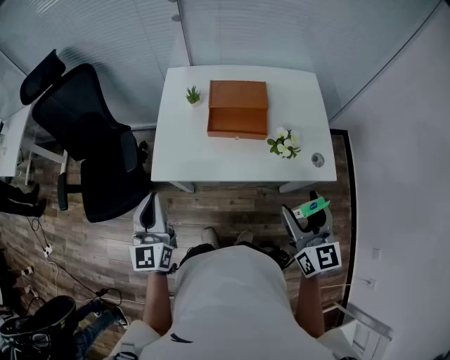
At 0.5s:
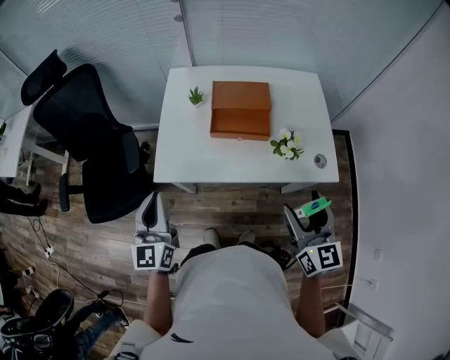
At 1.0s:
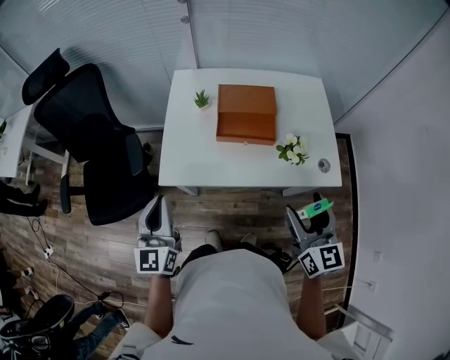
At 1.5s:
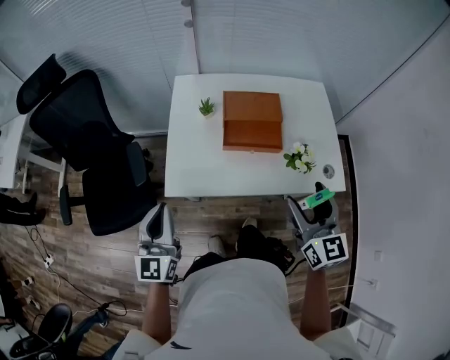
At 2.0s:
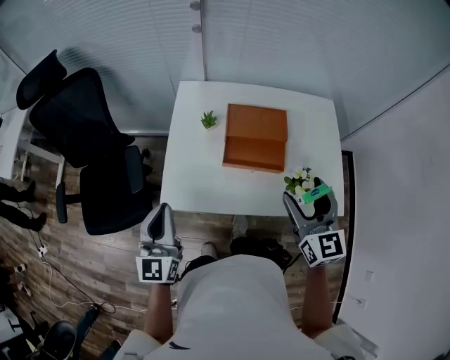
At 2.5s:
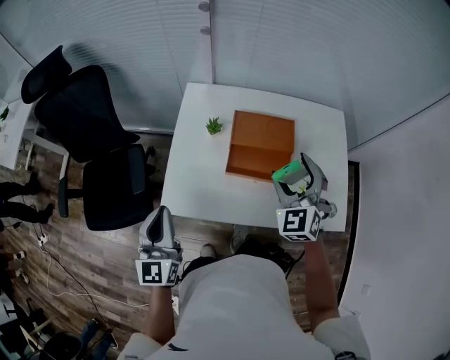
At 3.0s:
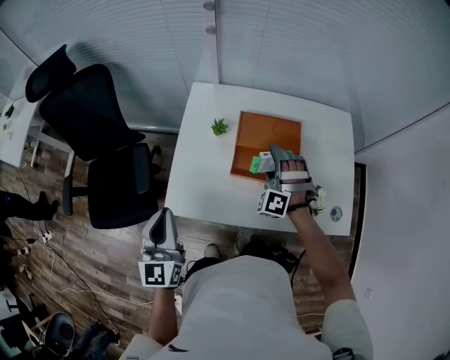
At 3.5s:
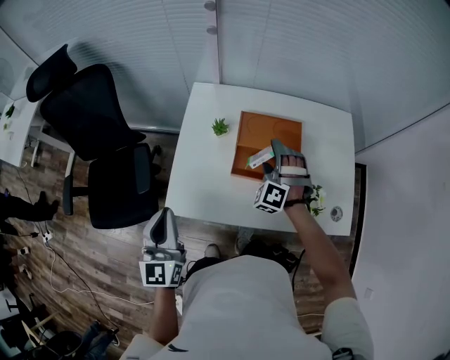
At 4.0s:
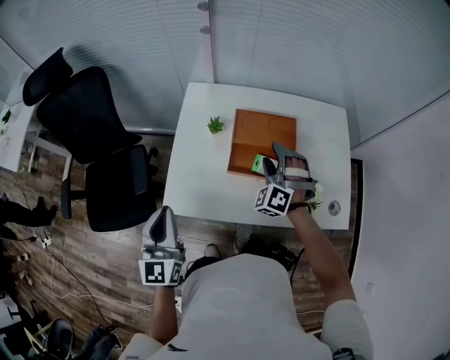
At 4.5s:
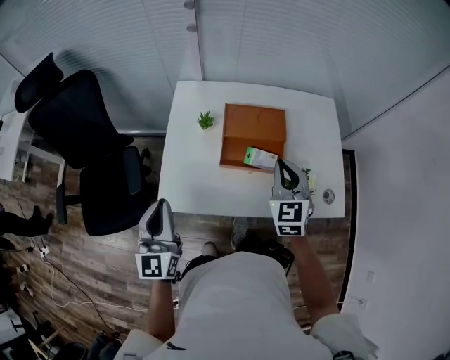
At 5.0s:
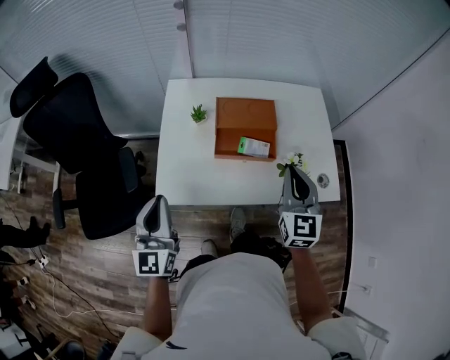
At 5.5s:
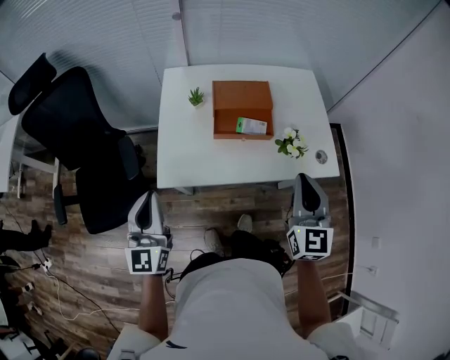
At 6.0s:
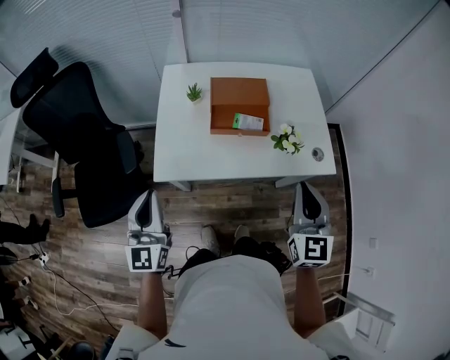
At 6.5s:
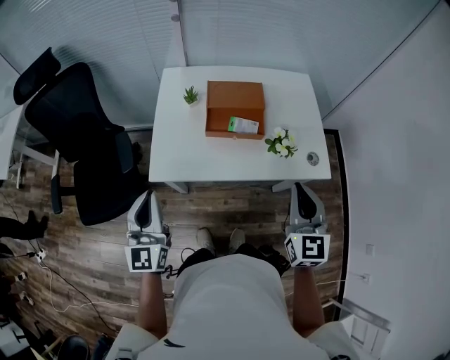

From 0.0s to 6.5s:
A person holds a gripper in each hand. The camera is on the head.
From 0.0s to 2.0s: The left gripper heads forward, covering approximately 10 cm. The right gripper shifts approximately 15 cm forward.
From 2.0s to 4.5s: The right gripper shifts about 10 cm forward and downward, rotates about 20 degrees, and closes its fingers.
From 4.5s to 6.5s: The left gripper heads backward, covering roughly 10 cm, while the right gripper is displaced backward by about 20 cm.

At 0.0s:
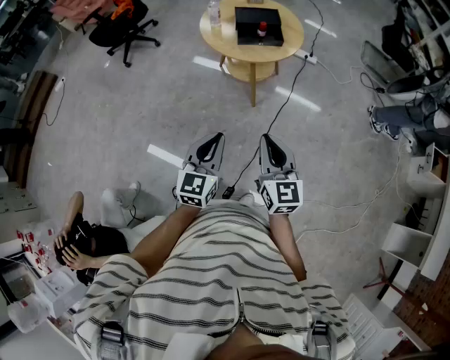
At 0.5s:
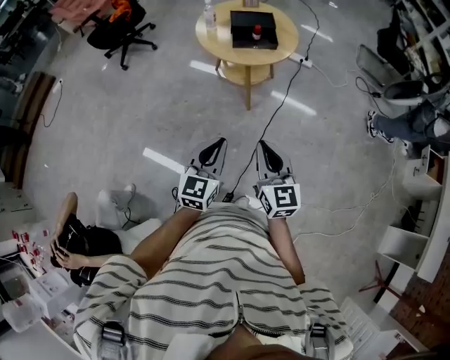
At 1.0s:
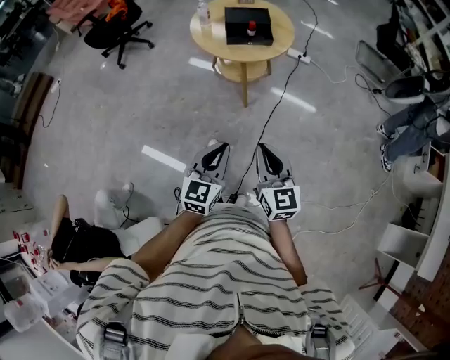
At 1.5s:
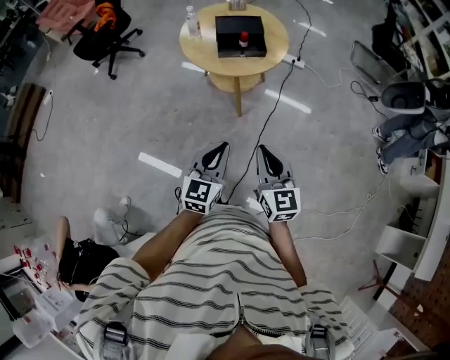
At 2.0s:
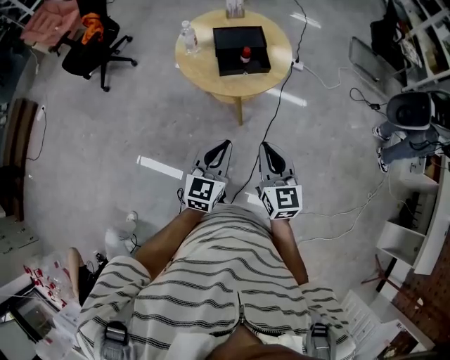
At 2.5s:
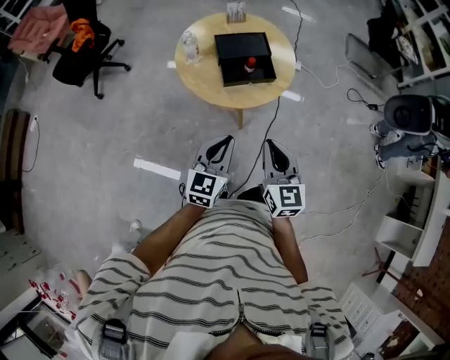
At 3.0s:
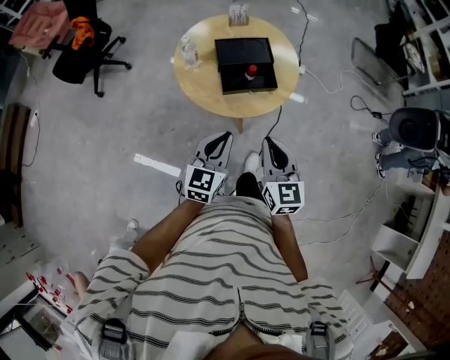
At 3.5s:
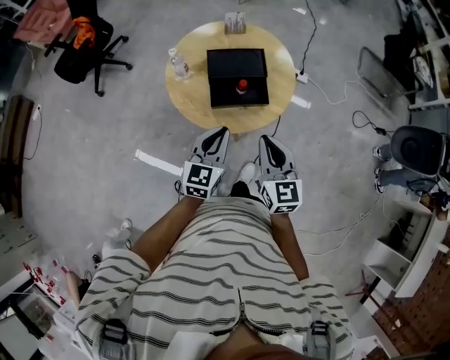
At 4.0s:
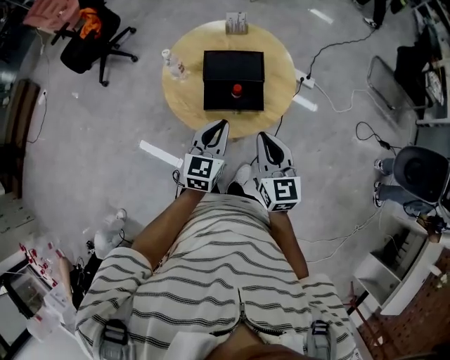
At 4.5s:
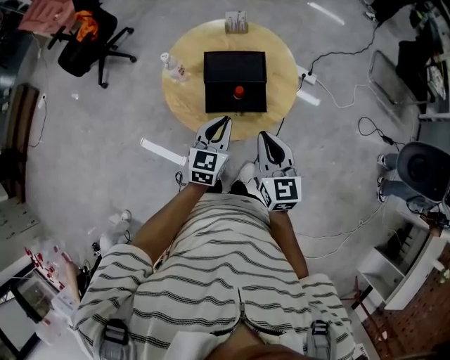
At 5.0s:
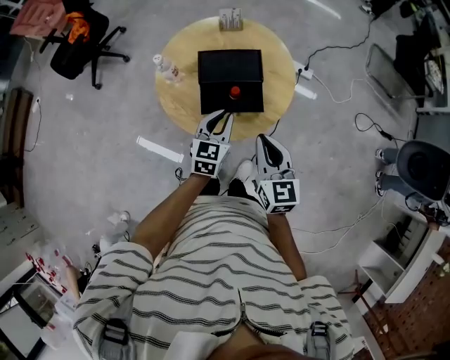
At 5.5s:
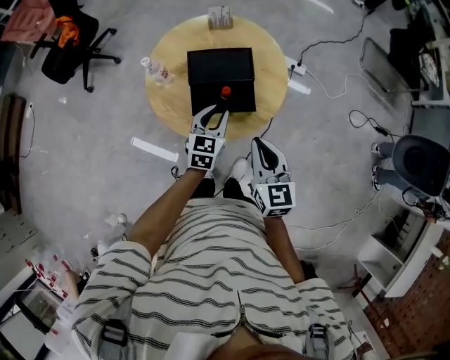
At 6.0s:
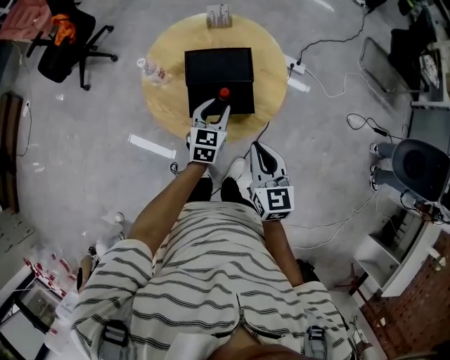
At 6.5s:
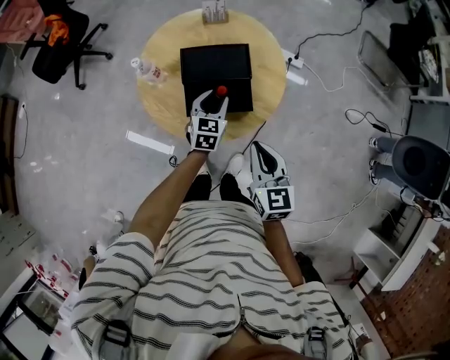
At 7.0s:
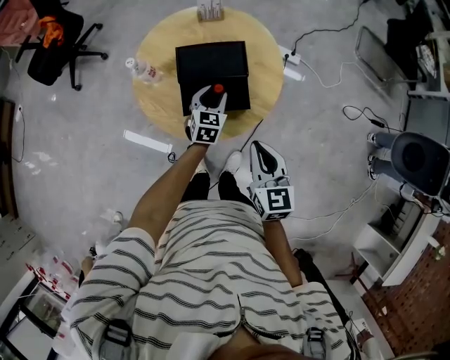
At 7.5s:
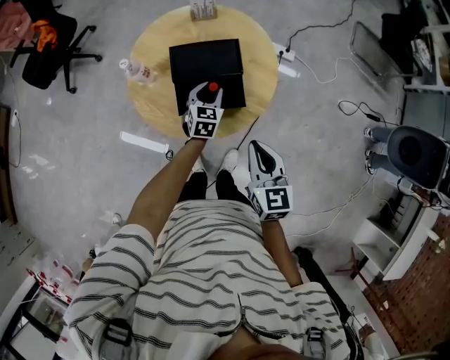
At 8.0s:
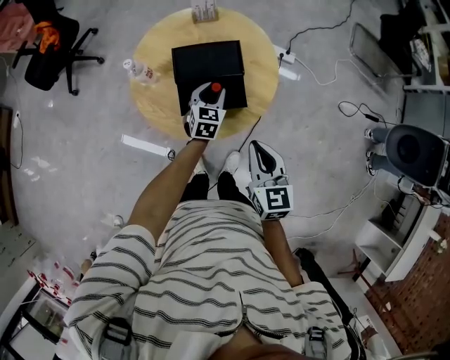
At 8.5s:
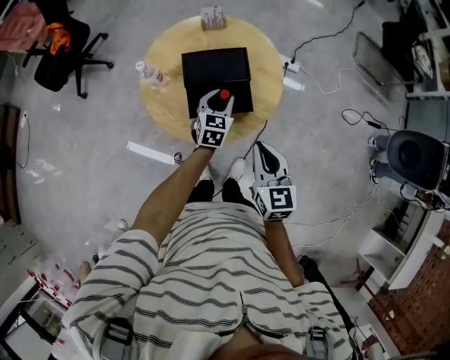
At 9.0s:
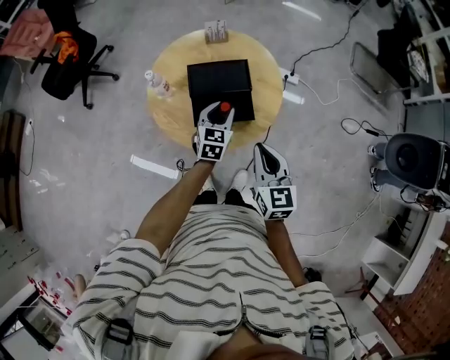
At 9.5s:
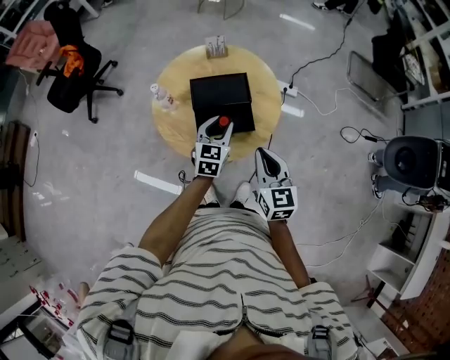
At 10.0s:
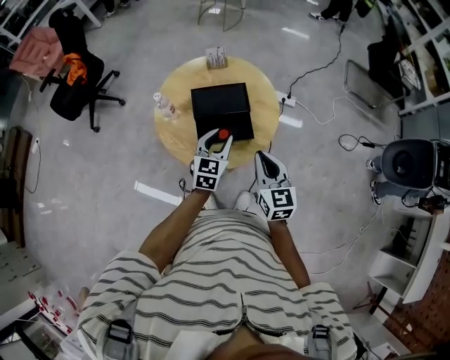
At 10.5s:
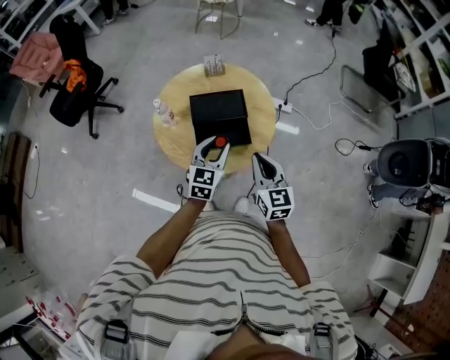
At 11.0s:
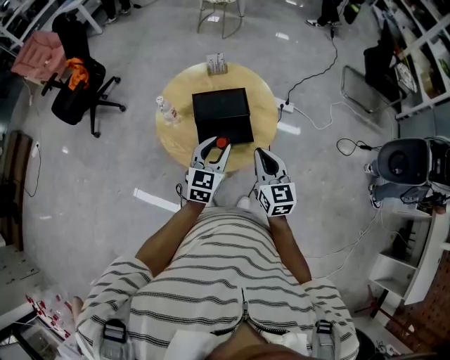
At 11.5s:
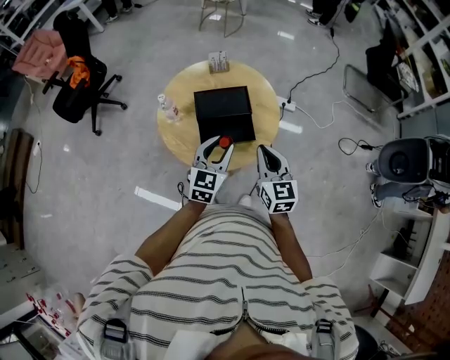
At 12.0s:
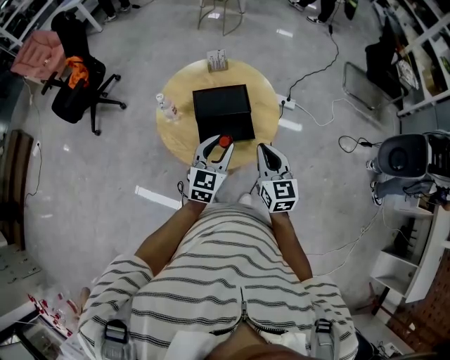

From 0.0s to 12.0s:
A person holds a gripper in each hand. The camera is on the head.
From 0.0s to 2.0s: Both grippers move forward, some 20 cm.
From 2.0s to 4.0s: The two grippers go about 30 cm forward.
From 4.0s to 6.0s: The right gripper shifts by approximately 5 cm. The left gripper moves forward and downward, some 15 cm, and opens its fingers.
From 6.0s to 8.0s: The left gripper heads downward, covering approximately 5 cm.
From 8.0s to 10.0s: The left gripper travels upward and backward by about 15 cm.
From 10.0s to 12.0s: The left gripper heads upward, covering roughly 5 cm.

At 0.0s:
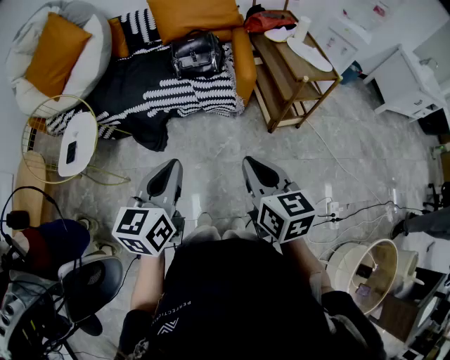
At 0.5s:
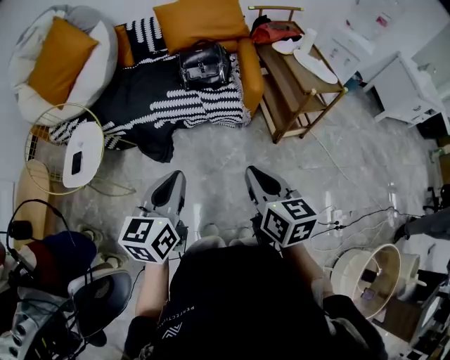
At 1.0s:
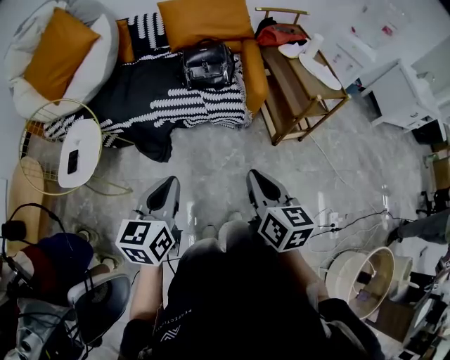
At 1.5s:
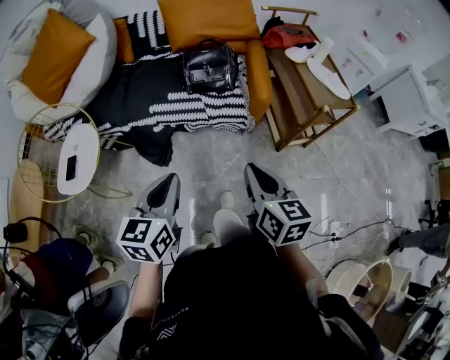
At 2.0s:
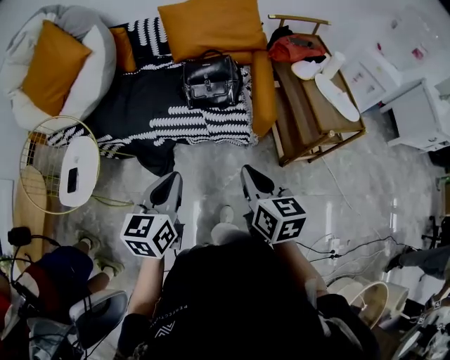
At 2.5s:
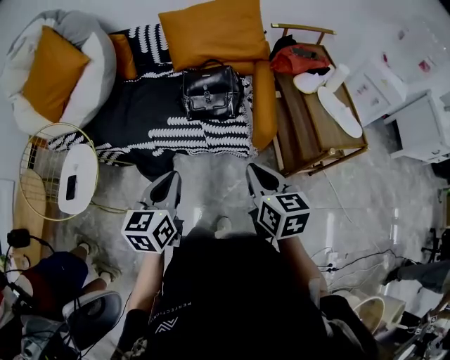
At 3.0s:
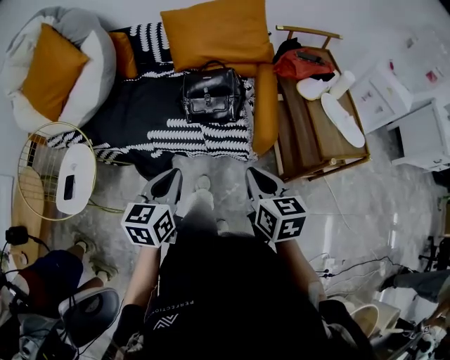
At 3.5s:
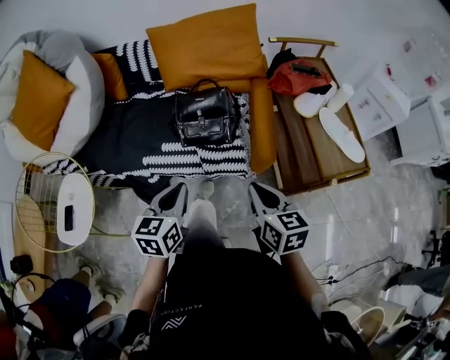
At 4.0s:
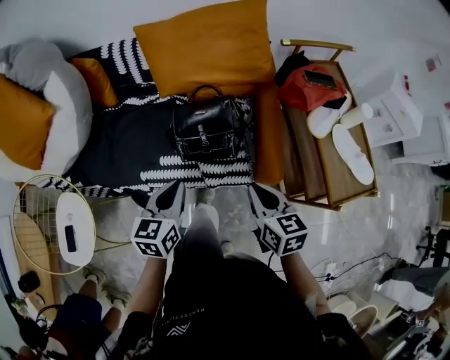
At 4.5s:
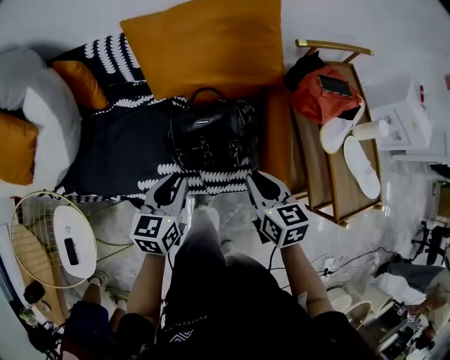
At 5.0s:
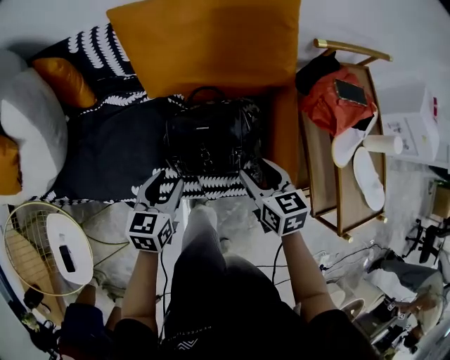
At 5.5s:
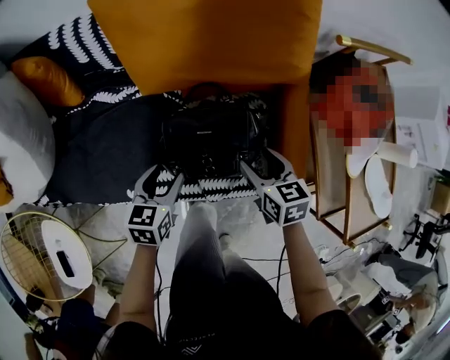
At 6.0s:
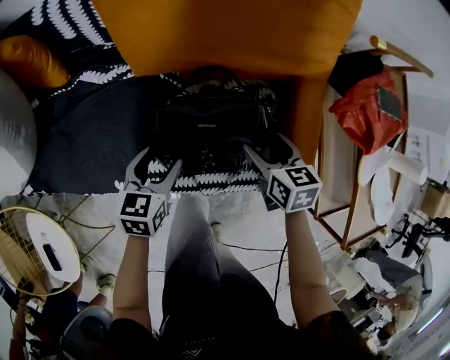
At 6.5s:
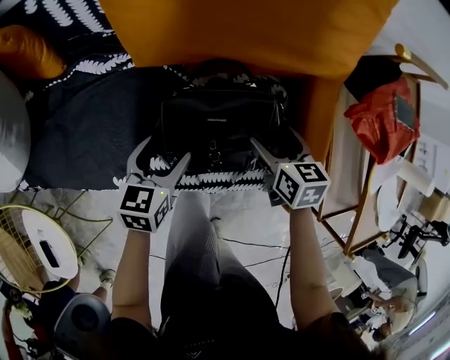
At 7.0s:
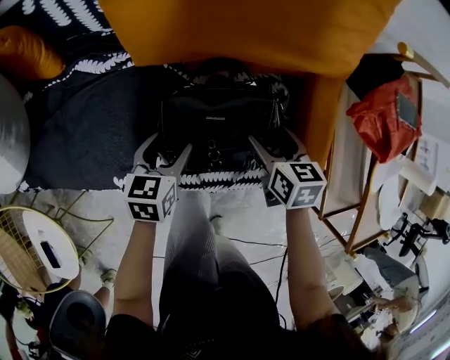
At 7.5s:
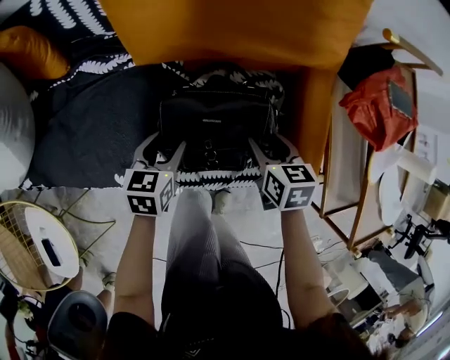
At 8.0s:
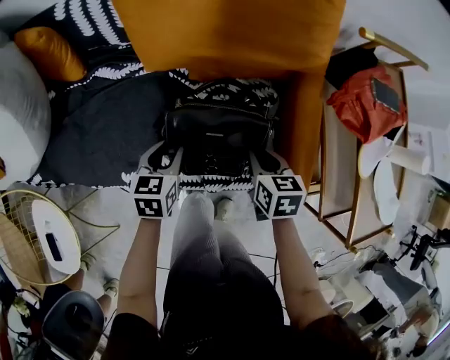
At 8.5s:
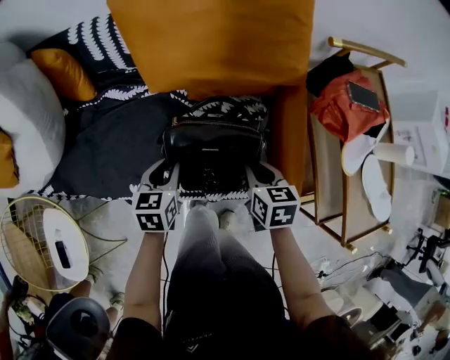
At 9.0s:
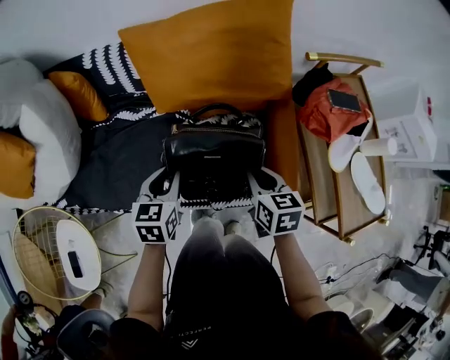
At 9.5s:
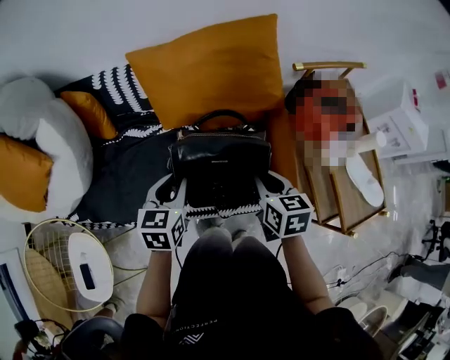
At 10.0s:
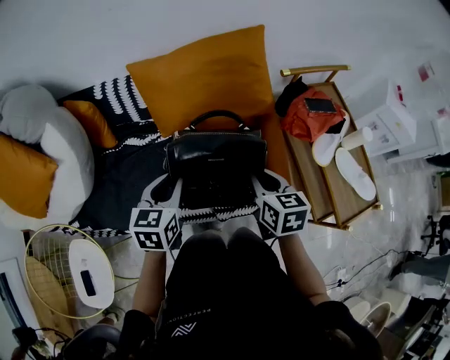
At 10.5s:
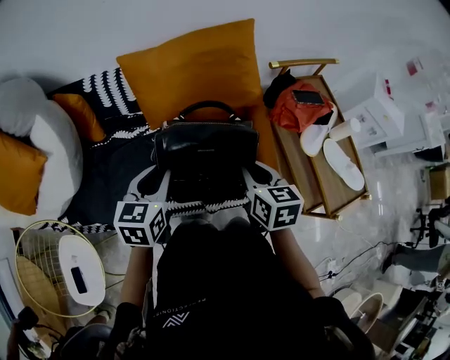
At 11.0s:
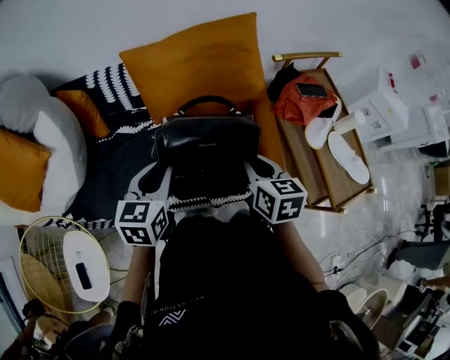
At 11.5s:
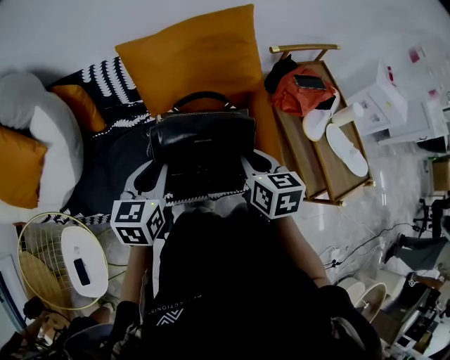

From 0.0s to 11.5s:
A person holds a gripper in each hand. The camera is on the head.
From 0.0s to 2.0s: The grippers both shift forward by roughly 20 cm.
From 2.0s to 4.0s: Both grippers move forward, roughly 30 cm.
From 4.0s to 6.0s: The left gripper moves downward and forward, approximately 30 cm, and opens, while the right gripper shifts approximately 35 cm forward and downward, and opens.
From 6.0s to 7.5s: There are only small adjustments of the grippers.
From 7.5s to 9.5s: The two grippers go some 25 cm upward. The left gripper closes up; the right gripper closes its fingers.
From 9.5s to 11.5s: The grippers both shift upward by some 5 cm.
